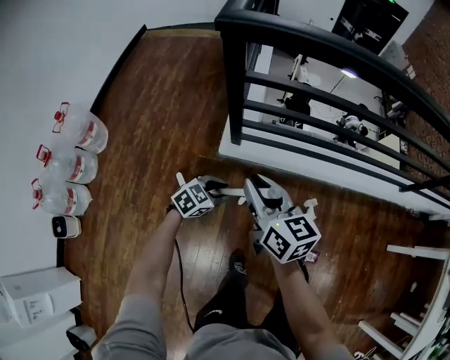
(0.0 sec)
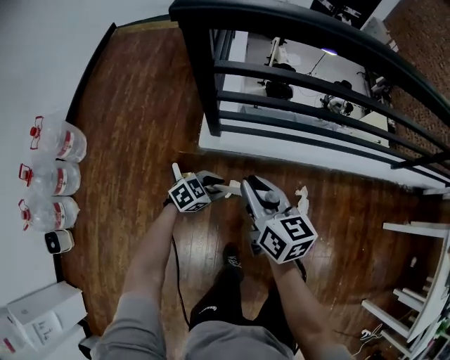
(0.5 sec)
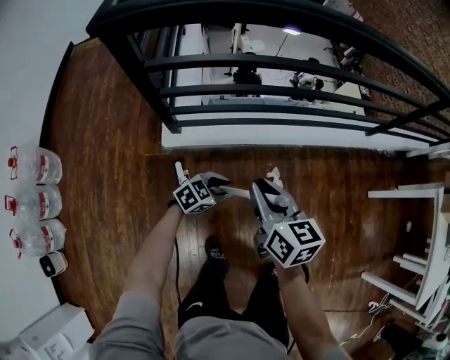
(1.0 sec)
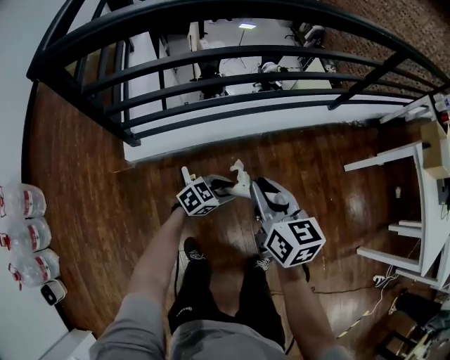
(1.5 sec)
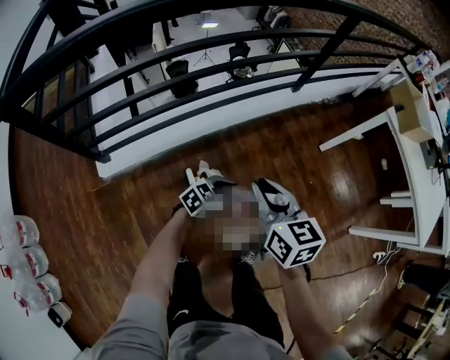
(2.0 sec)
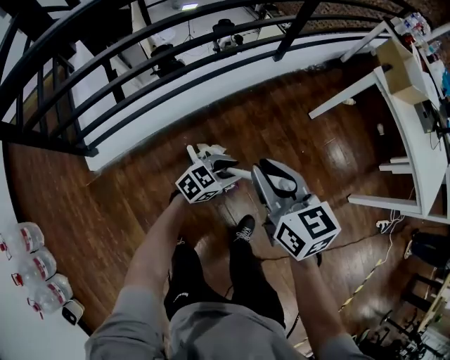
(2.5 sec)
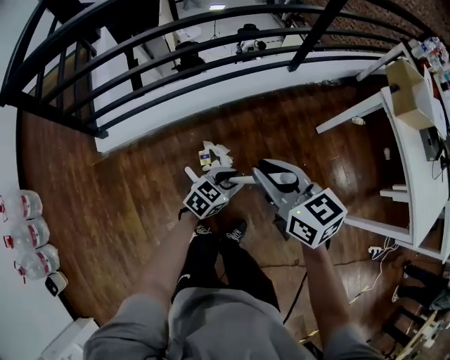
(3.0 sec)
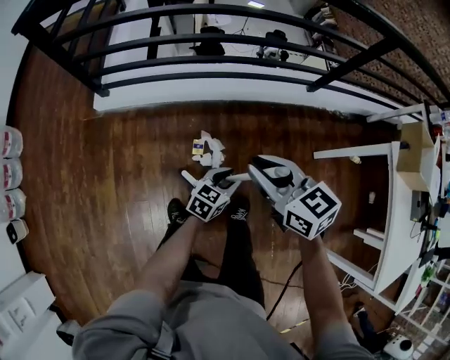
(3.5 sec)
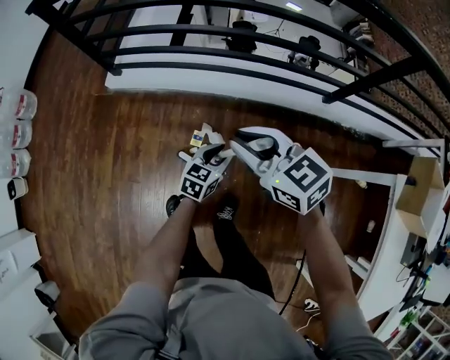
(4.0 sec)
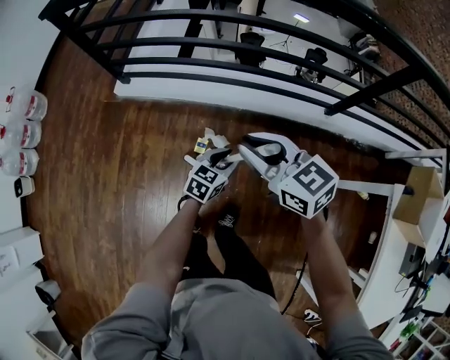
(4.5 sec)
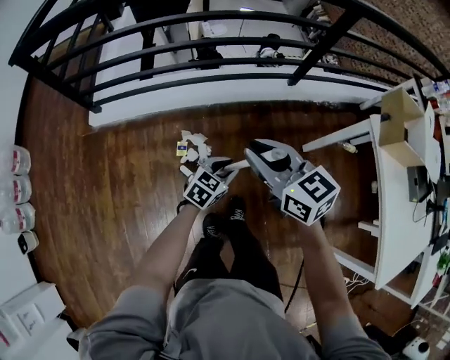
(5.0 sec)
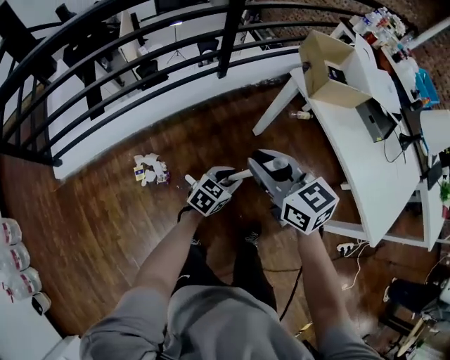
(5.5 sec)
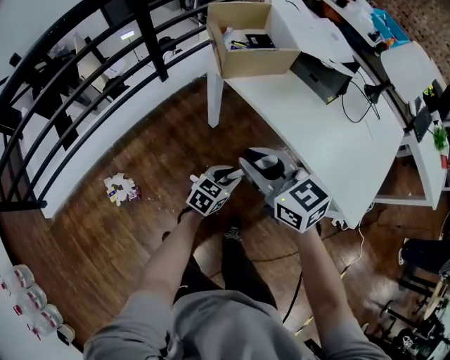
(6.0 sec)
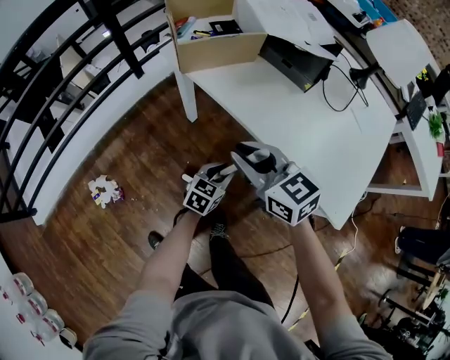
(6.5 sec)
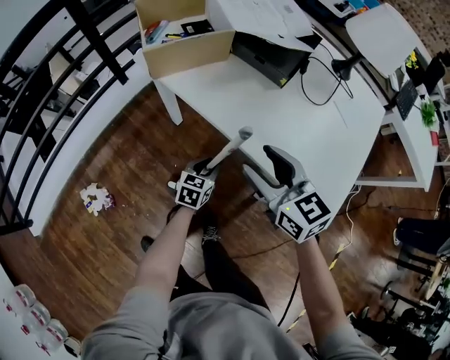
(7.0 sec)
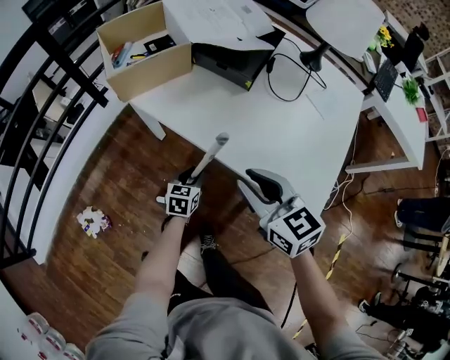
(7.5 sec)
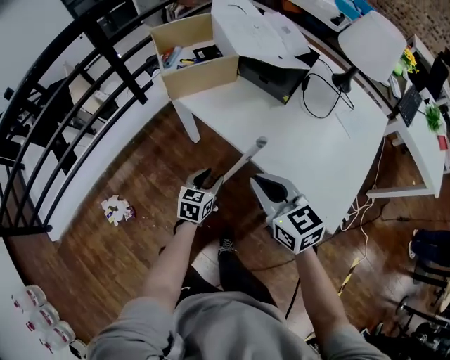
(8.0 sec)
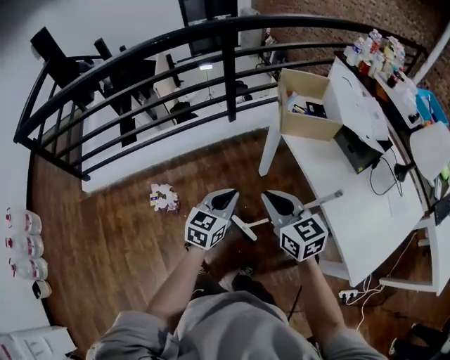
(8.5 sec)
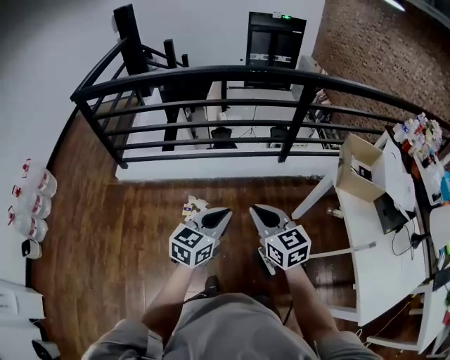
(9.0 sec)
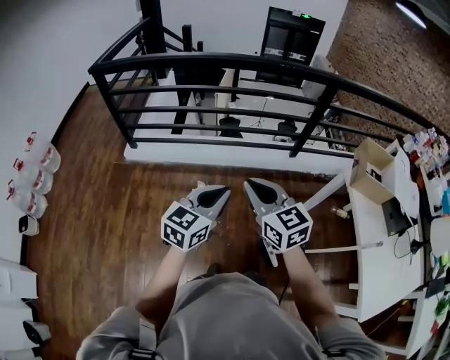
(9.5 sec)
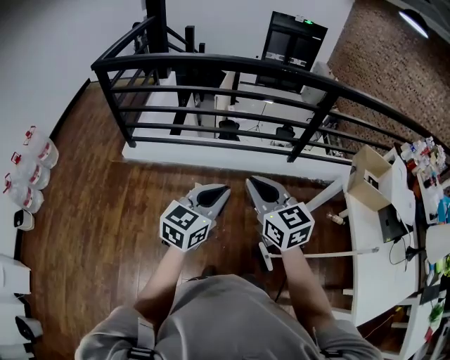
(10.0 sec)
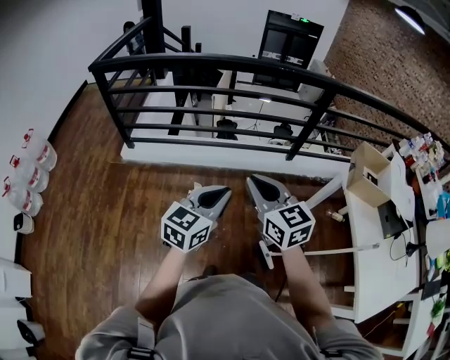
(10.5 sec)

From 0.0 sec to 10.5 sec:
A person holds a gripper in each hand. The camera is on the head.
From 0.0 sec to 2.0 sec: The pair of grippers is taken roughly 60 cm. The left gripper rotates some 40 degrees; the right gripper rotates approximately 40 degrees.
From 2.0 sec to 4.0 sec: The left gripper changes place by approximately 15 cm, and rotates some 60 degrees, while the right gripper changes place by approximately 10 cm, and rotates approximately 60 degrees.
From 4.0 sec to 6.5 sec: Both grippers are carried roughly 70 cm. The right gripper rotates some 60 degrees; the left gripper turns by roughly 60 degrees.
From 6.5 sec to 8.5 sec: The left gripper shifts about 25 cm upward, swivels approximately 40 degrees, and closes up; the right gripper shifts by some 15 cm, and opens, then closes once more.
From 8.5 sec to 10.5 sec: The right gripper moves to the left, about 40 cm, and changes its angle by some 20 degrees. Meanwhile the left gripper is displaced to the left and upward by roughly 40 cm, and changes its angle by about 20 degrees.

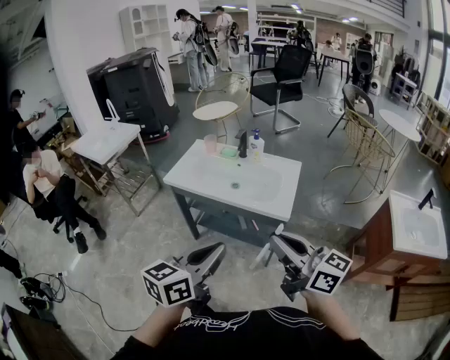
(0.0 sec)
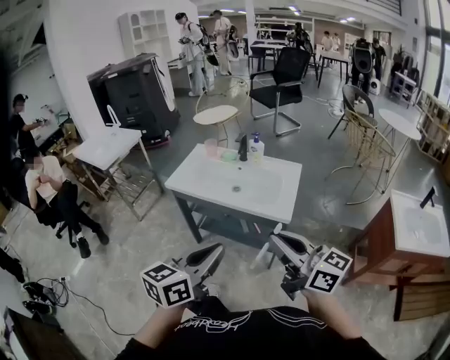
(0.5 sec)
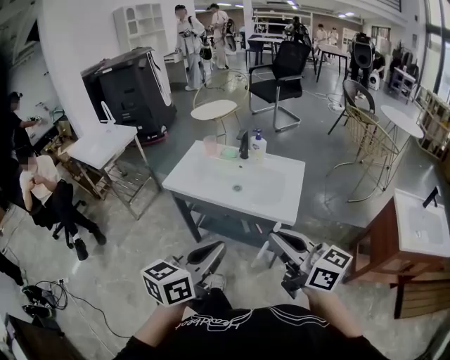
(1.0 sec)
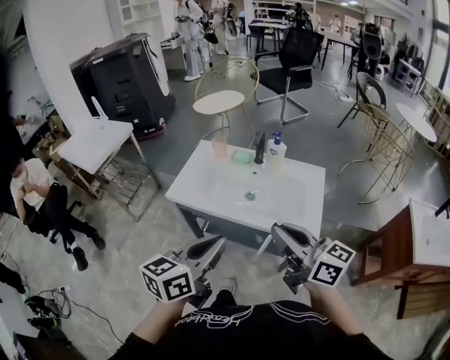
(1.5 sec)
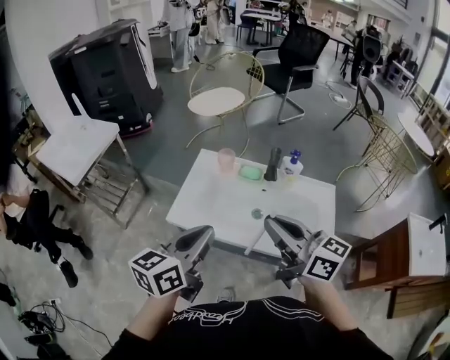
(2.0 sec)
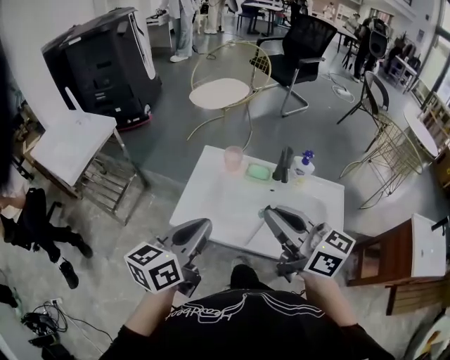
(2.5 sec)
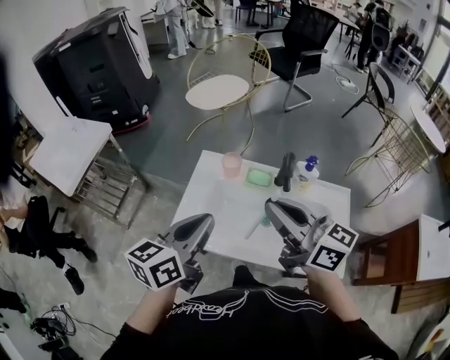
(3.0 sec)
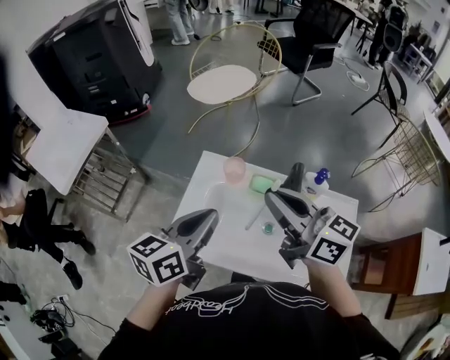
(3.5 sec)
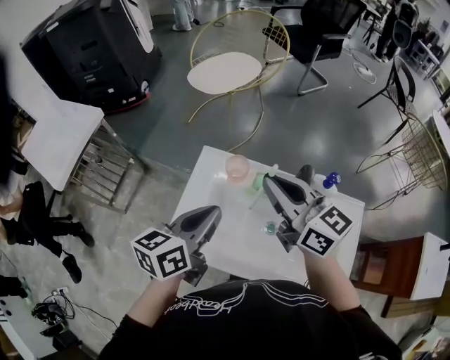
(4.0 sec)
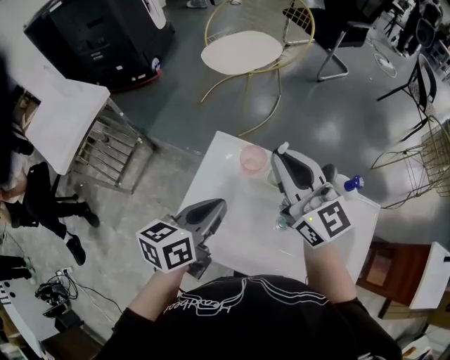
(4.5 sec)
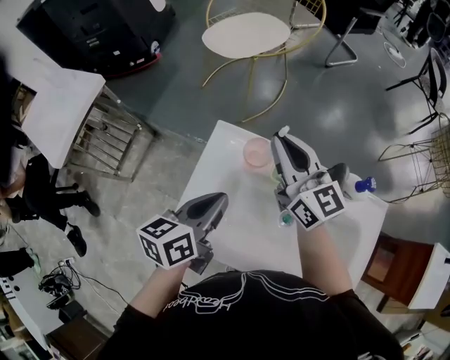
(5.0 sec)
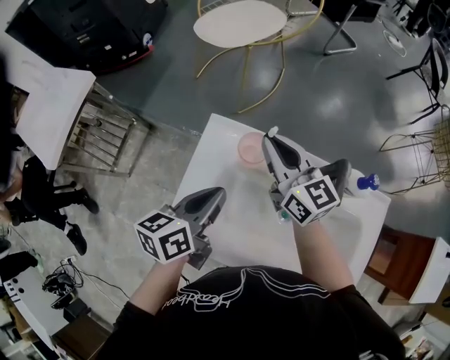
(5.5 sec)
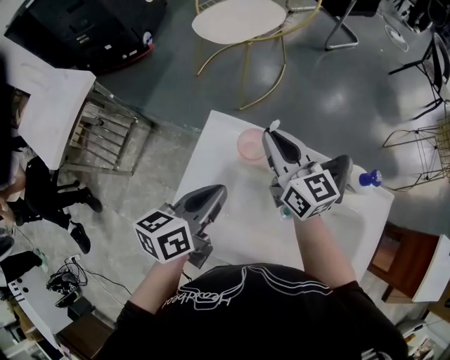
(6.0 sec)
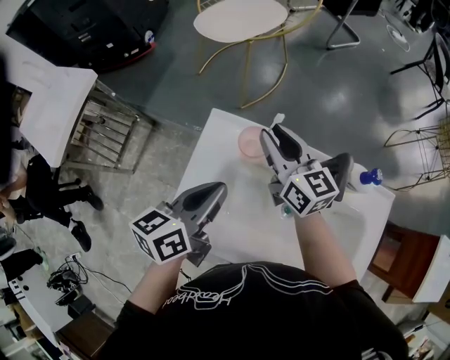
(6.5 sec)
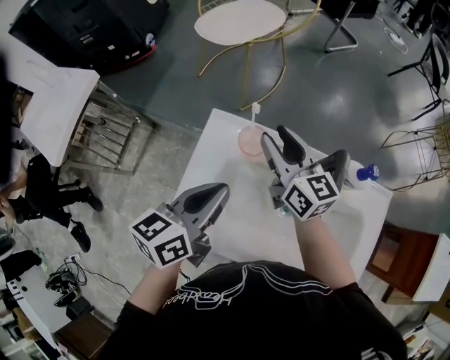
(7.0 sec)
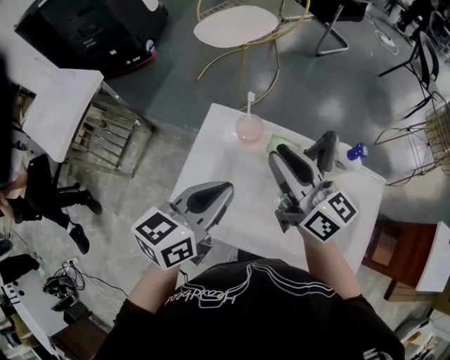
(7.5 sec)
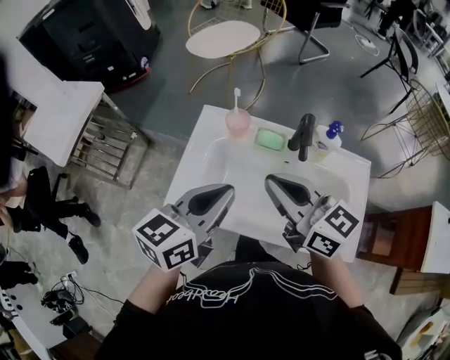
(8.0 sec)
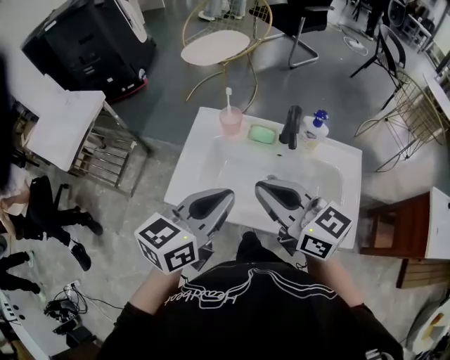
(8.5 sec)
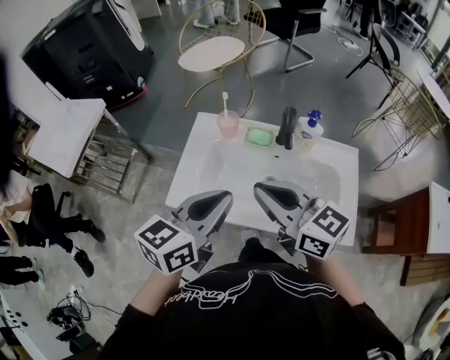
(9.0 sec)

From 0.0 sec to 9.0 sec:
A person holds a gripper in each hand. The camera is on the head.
From 0.0 sec to 2.0 sec: The two grippers go approximately 40 cm forward and to the left.
From 2.0 sec to 4.5 sec: The left gripper goes roughly 25 cm forward and downward; the right gripper is displaced forward by some 30 cm, and changes its angle by some 20 degrees.
From 4.5 sec to 7.0 sec: The right gripper travels downward and forward by about 15 cm, swivels some 20 degrees, and opens.
From 7.0 sec to 9.0 sec: The right gripper shifts some 30 cm backward, and closes its fingers. The left gripper travels backward and upward by roughly 20 cm.

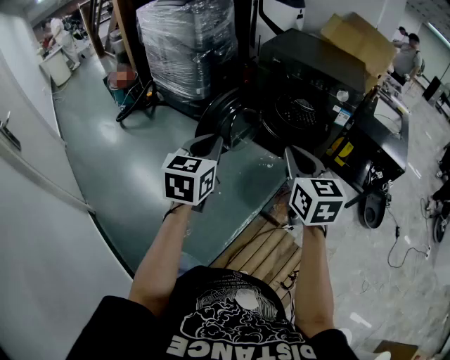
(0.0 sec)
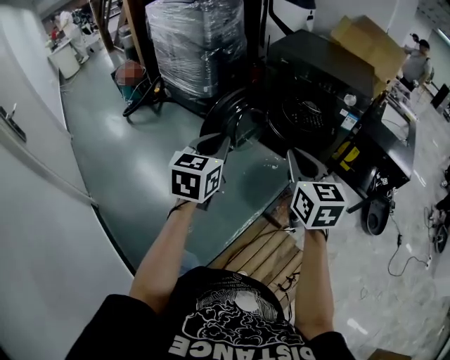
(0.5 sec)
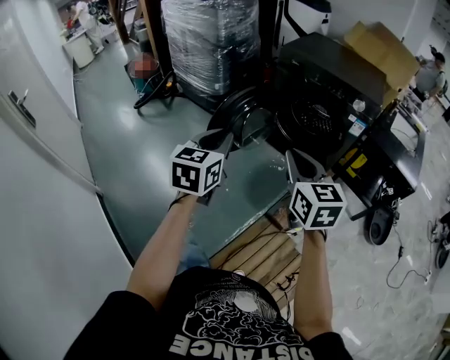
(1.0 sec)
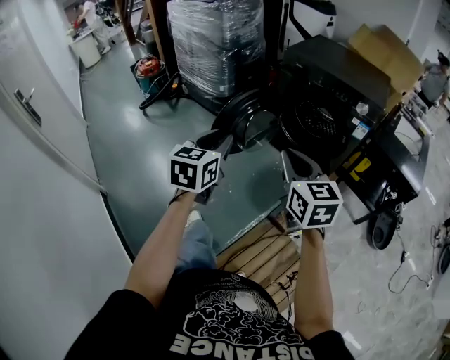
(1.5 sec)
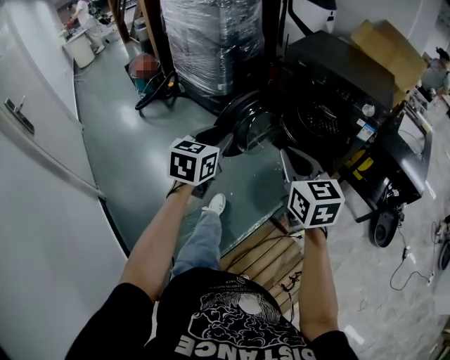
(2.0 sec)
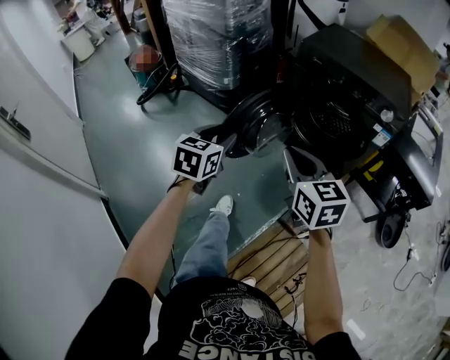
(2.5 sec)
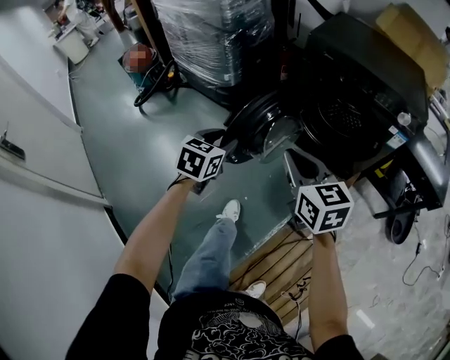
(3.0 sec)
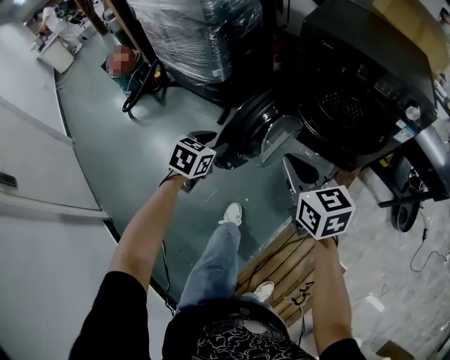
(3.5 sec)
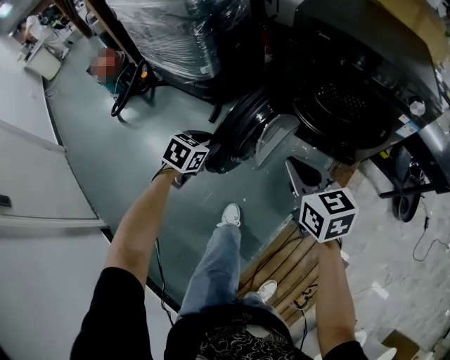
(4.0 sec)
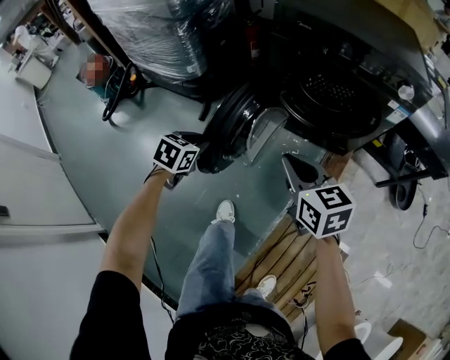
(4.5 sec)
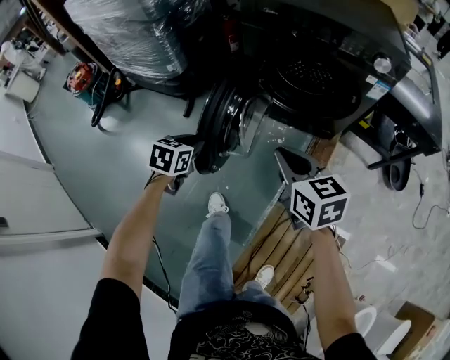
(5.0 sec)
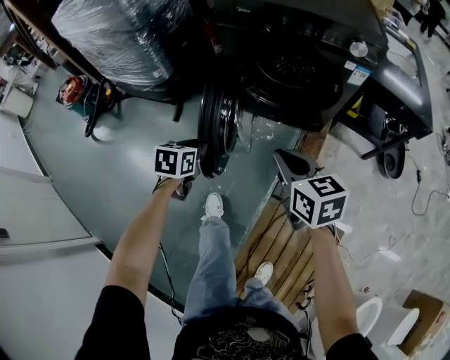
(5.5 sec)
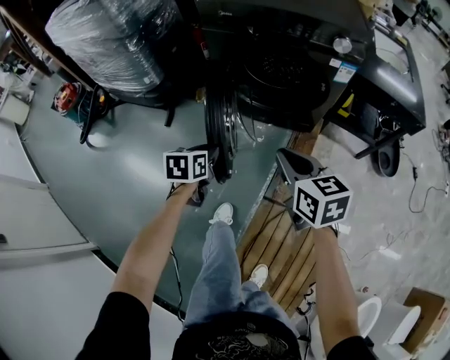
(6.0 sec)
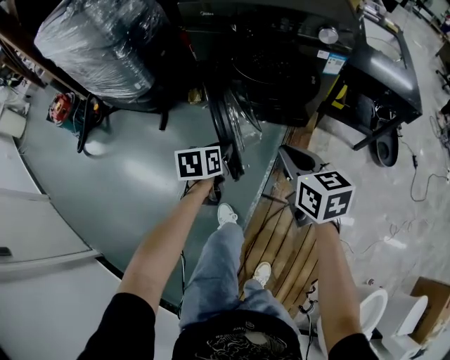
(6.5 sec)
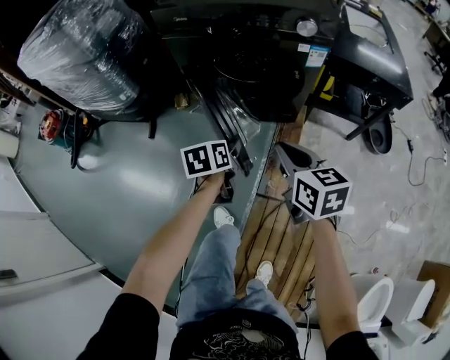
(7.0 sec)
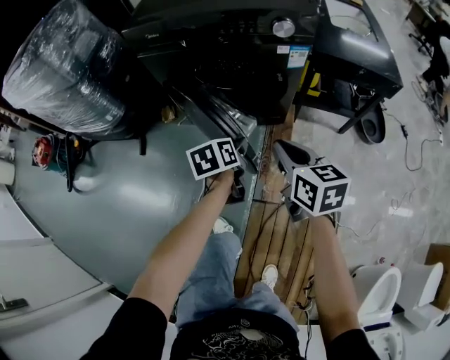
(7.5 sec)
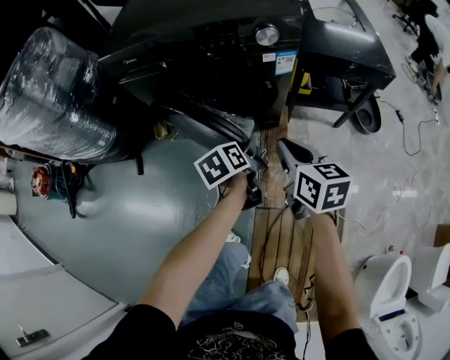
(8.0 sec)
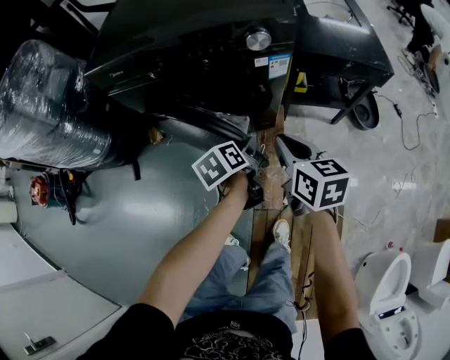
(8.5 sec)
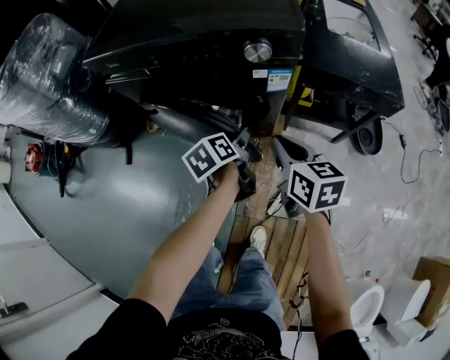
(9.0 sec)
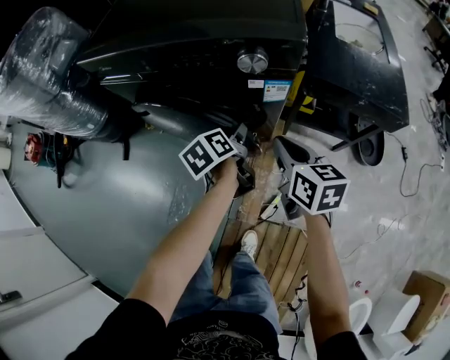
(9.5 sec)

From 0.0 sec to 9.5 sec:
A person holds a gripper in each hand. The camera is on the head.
From 0.0 sec to 2.0 sec: The two grippers go approximately 5 cm forward.
From 2.0 sec to 4.0 sec: The grippers both shift forward and downward by roughly 30 cm. The left gripper changes its angle by roughly 40 degrees.
From 4.0 sec to 5.5 sec: Both grippers move to the right and backward, approximately 15 cm.
From 5.5 sec to 7.5 sec: The left gripper heads to the right, covering about 25 cm, turns by some 20 degrees, and opens. Meanwhile the right gripper travels to the right by about 15 cm.
From 7.5 sec to 9.5 sec: Both grippers travel together forward and to the right, approximately 20 cm. The left gripper rotates approximately 20 degrees.
